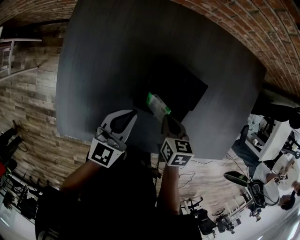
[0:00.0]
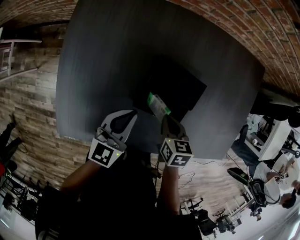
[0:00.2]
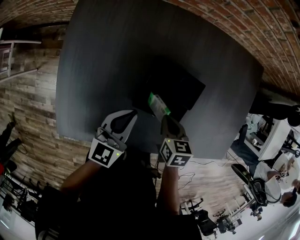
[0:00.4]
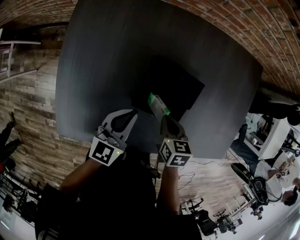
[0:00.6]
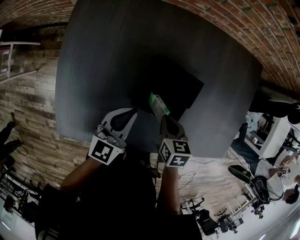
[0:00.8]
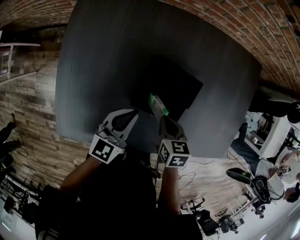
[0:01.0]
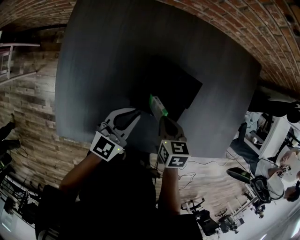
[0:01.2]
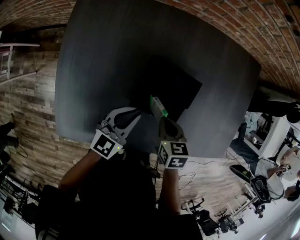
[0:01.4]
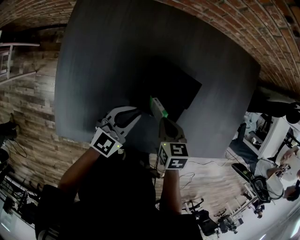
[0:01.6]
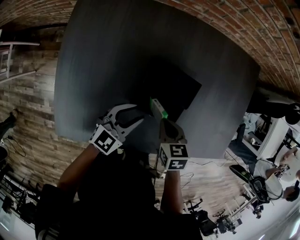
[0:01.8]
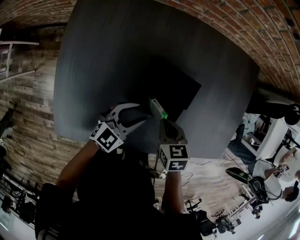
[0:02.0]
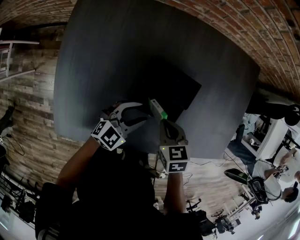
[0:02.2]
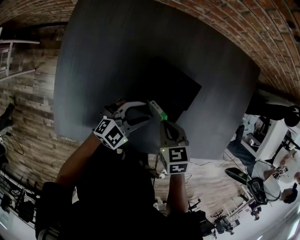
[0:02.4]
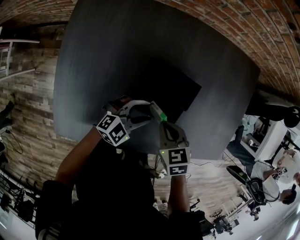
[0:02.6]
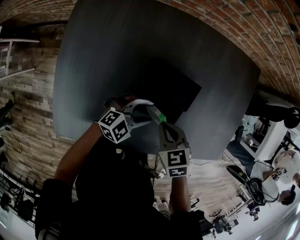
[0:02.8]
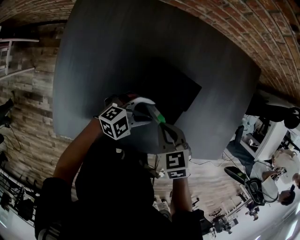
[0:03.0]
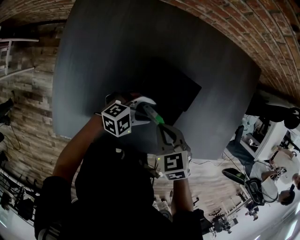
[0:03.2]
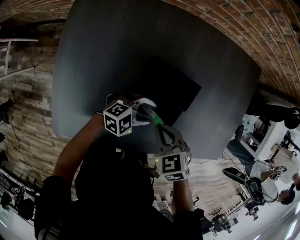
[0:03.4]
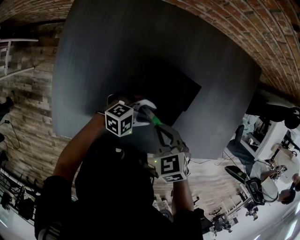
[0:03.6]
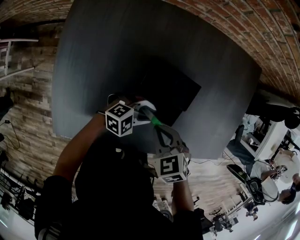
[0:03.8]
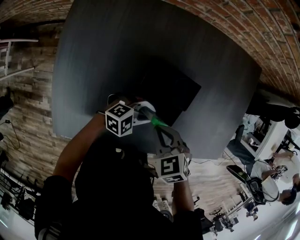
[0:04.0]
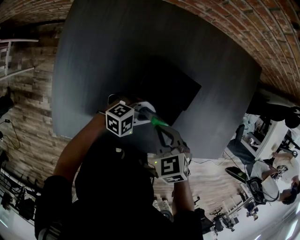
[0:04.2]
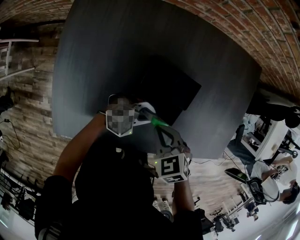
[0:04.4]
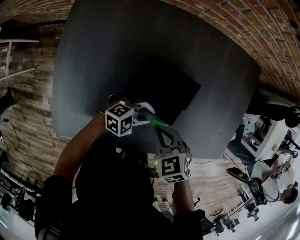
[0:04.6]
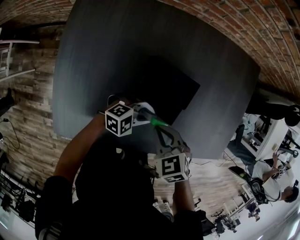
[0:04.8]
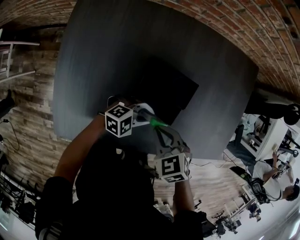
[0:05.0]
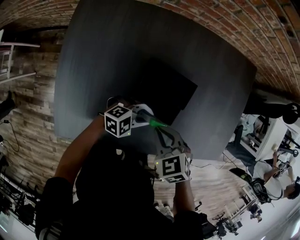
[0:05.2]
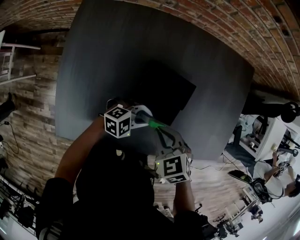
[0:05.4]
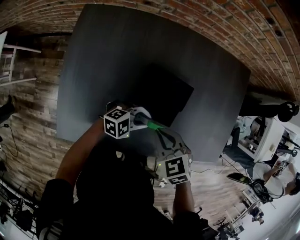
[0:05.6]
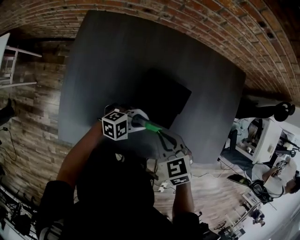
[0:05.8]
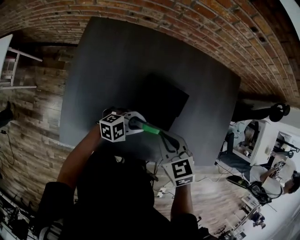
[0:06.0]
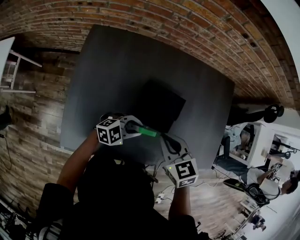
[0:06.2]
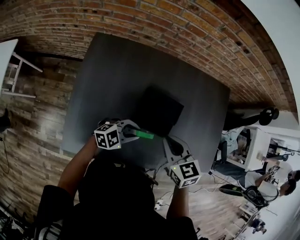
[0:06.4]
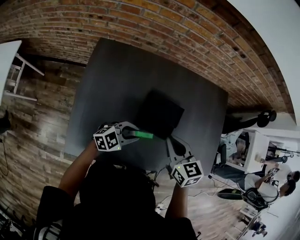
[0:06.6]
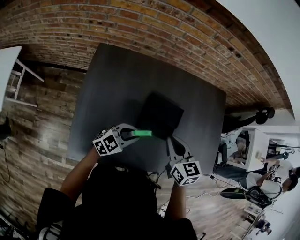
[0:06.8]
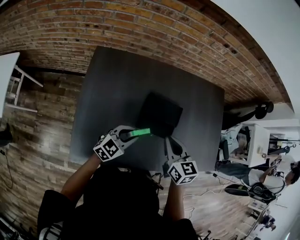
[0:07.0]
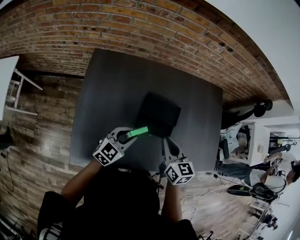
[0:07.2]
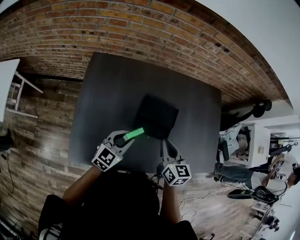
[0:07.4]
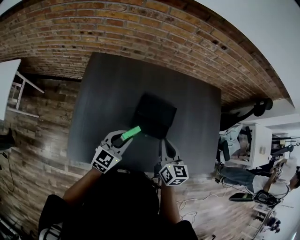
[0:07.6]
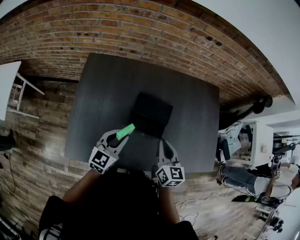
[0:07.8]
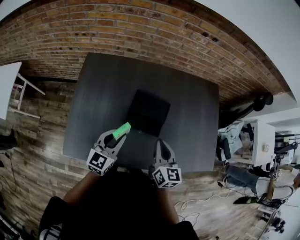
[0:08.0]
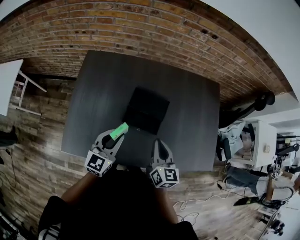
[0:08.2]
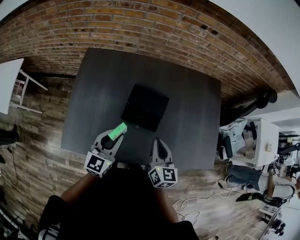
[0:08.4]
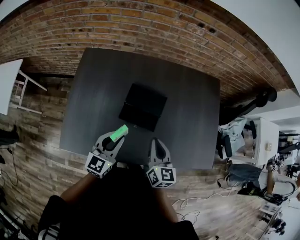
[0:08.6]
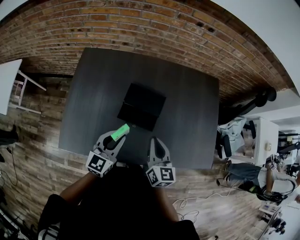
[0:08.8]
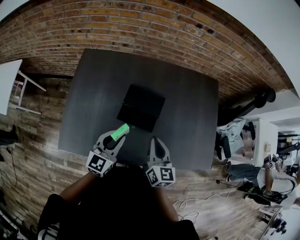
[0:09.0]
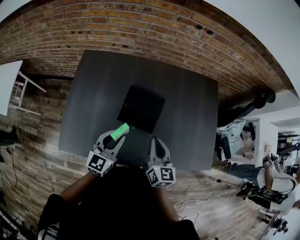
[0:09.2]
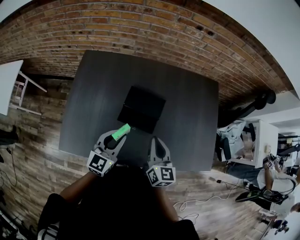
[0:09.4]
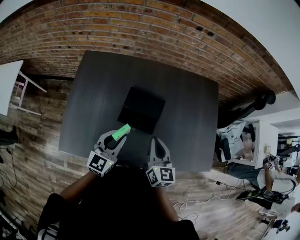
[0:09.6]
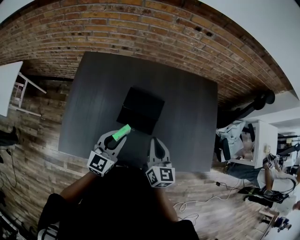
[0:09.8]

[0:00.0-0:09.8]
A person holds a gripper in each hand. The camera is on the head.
0:00.0 to 0:01.4: The grippers move only a little.
0:01.4 to 0:02.8: The right gripper swivels about 20 degrees. The left gripper travels to the right and downward by roughly 10 cm, turns by about 40 degrees, and opens up.
0:02.8 to 0:04.2: The left gripper closes up.
0:04.2 to 0:05.6: The right gripper goes about 5 cm upward.
0:05.6 to 0:07.0: The left gripper ends up some 15 cm from where it was, and swivels approximately 40 degrees; the right gripper goes about 10 cm upward, and turns by approximately 40 degrees.
0:07.0 to 0:08.4: The right gripper moves to the right, approximately 10 cm. Meanwhile the left gripper moves upward and to the right, roughly 10 cm, and swivels about 30 degrees.
0:08.4 to 0:09.8: The grippers make only small movements.

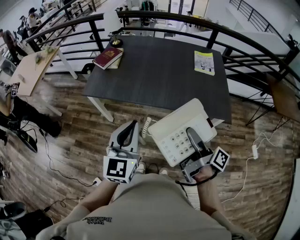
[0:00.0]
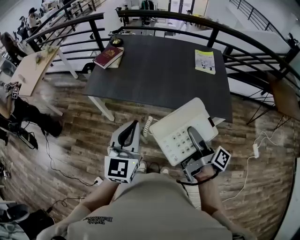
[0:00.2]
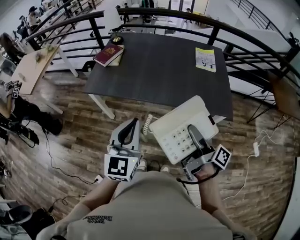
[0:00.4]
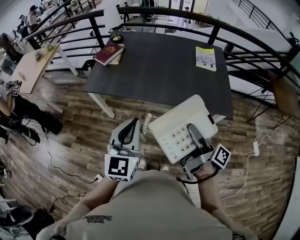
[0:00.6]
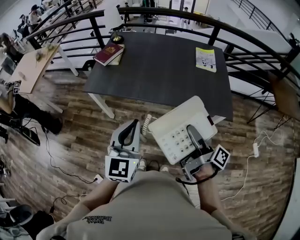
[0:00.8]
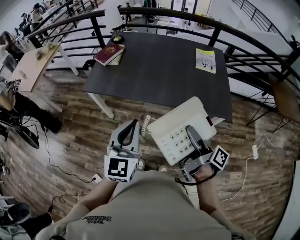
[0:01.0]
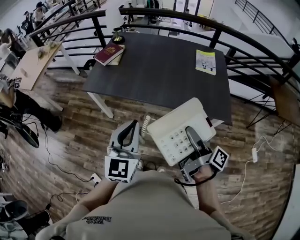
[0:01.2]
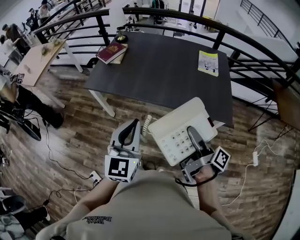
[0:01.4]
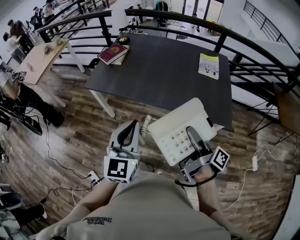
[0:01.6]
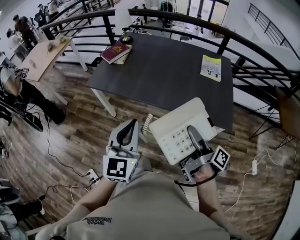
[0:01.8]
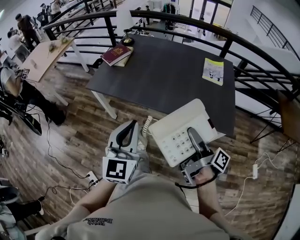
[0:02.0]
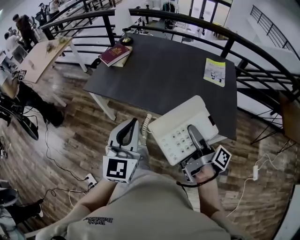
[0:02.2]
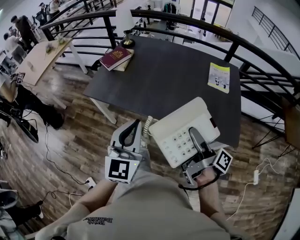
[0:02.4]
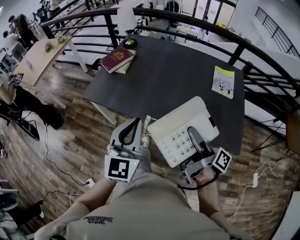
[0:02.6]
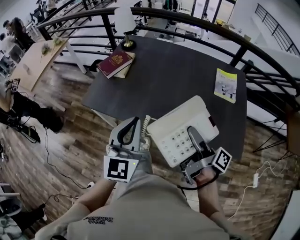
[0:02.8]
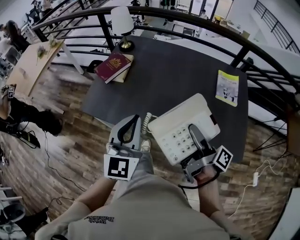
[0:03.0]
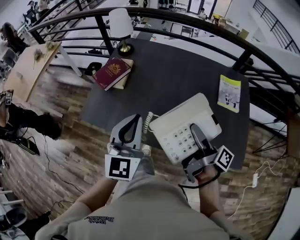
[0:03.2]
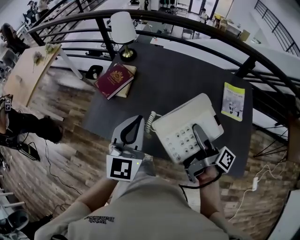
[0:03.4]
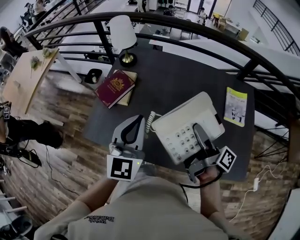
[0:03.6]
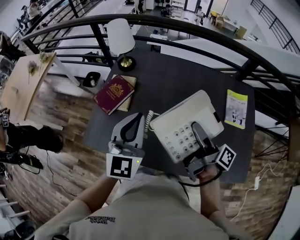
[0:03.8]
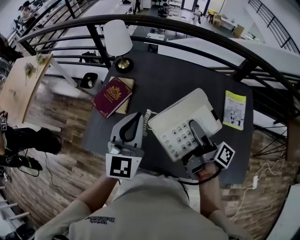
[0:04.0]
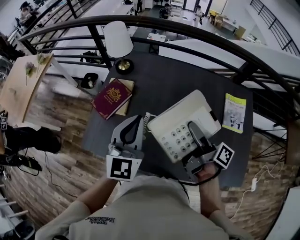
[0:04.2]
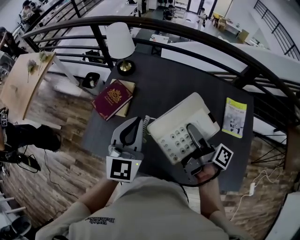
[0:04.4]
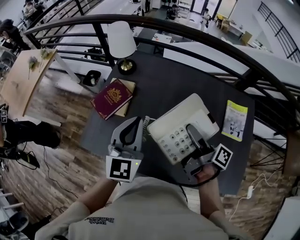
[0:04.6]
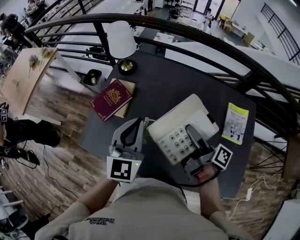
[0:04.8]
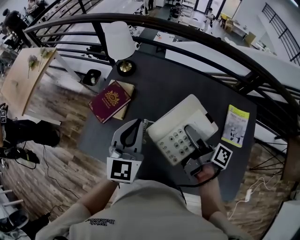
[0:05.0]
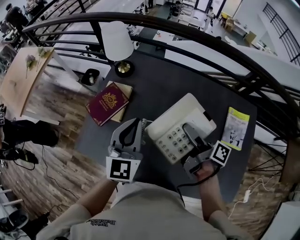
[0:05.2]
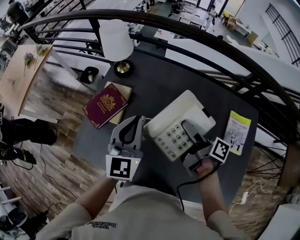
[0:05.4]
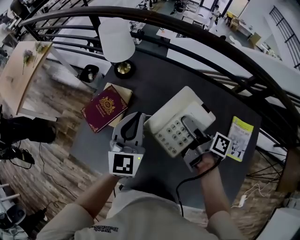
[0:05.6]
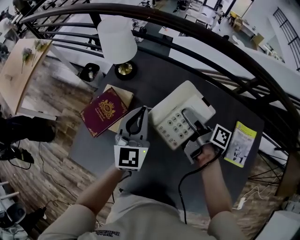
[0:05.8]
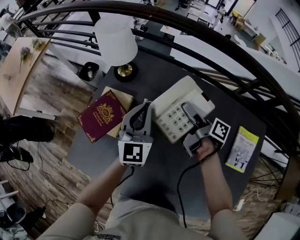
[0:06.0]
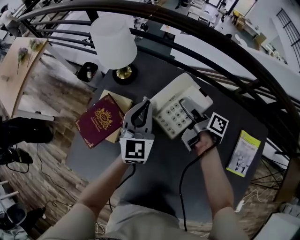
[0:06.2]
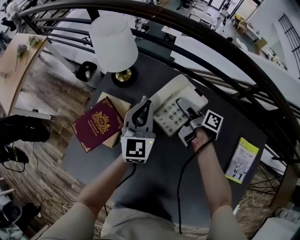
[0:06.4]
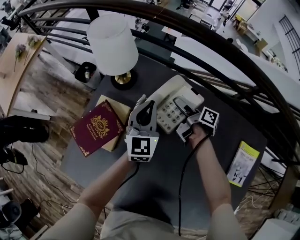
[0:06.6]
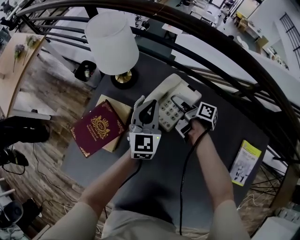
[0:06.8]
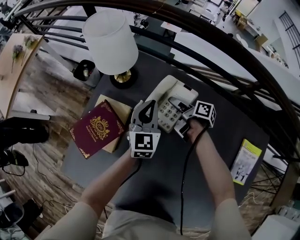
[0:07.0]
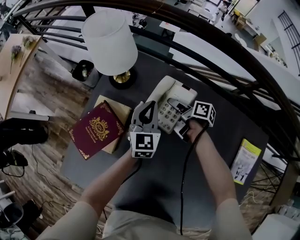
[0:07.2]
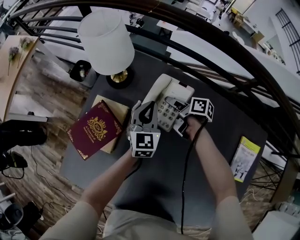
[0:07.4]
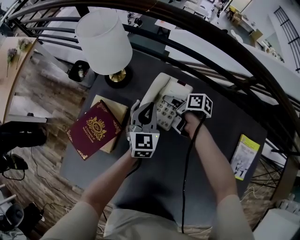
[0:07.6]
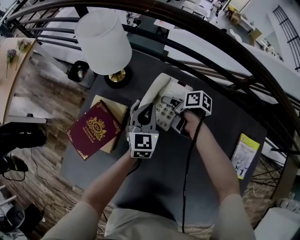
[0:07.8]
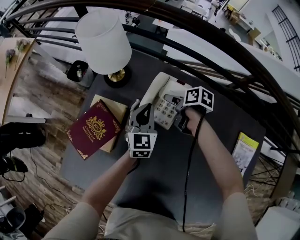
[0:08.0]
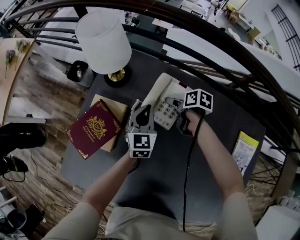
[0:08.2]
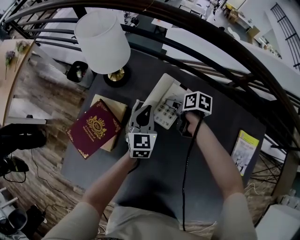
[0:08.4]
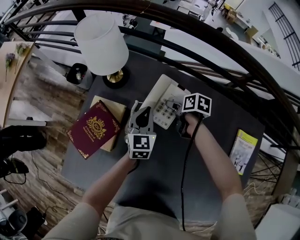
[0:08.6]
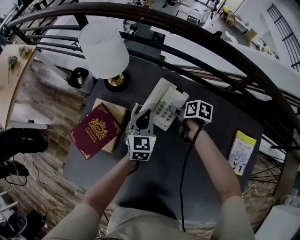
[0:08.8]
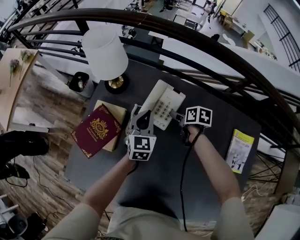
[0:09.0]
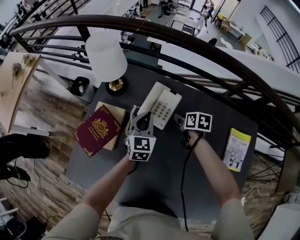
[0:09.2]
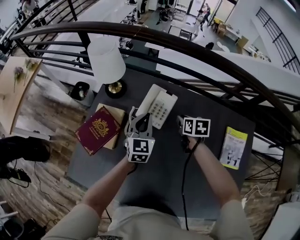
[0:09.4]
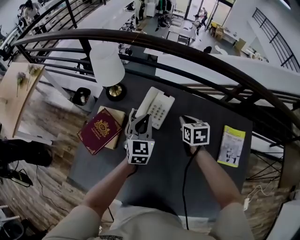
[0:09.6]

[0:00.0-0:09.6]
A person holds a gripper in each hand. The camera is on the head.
0:00.0 to 0:01.6: The left gripper moves about 5 cm.
0:01.6 to 0:03.2: The left gripper changes place by roughly 35 cm.
0:03.2 to 0:04.8: The left gripper moves some 20 cm.
0:04.8 to 0:06.4: The left gripper moves roughly 35 cm.
0:06.4 to 0:08.0: The left gripper is displaced downward by some 10 cm.
0:08.0 to 0:09.6: The left gripper goes some 10 cm upward.

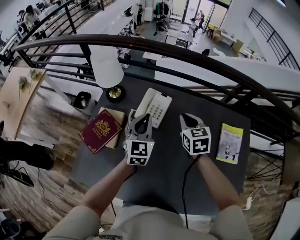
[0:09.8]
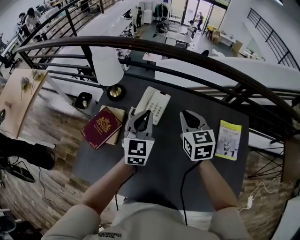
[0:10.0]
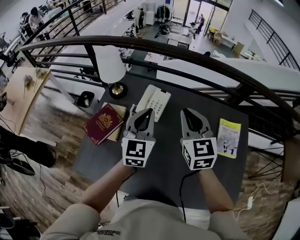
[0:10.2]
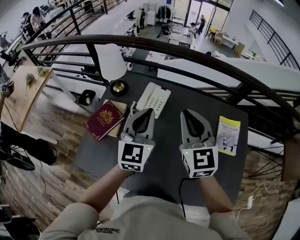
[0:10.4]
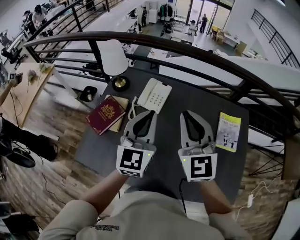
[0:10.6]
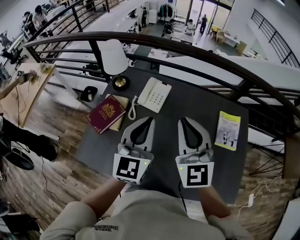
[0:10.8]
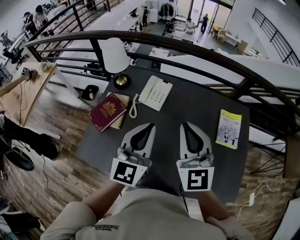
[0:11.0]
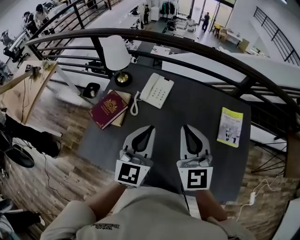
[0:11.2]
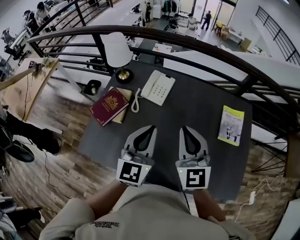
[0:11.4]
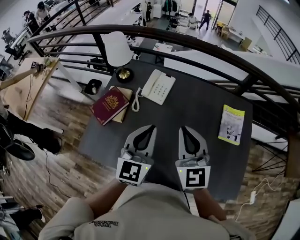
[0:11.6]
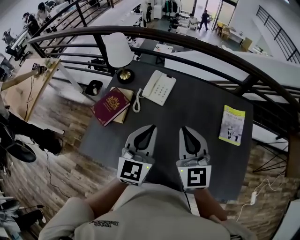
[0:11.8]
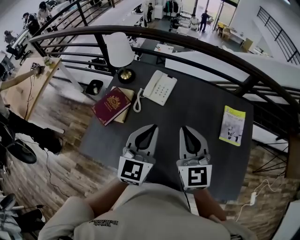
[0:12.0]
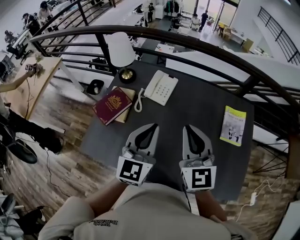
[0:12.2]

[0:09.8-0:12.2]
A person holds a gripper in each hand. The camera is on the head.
0:09.8 to 0:11.0: The left gripper moves about 25 cm.

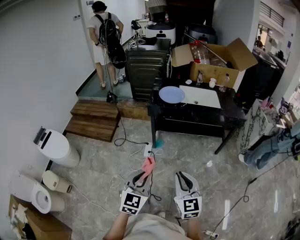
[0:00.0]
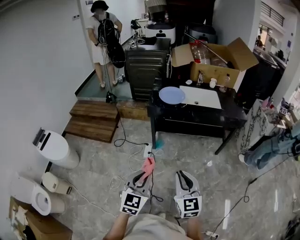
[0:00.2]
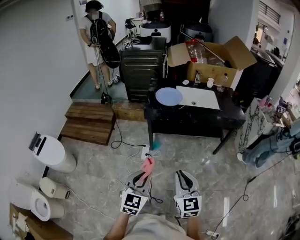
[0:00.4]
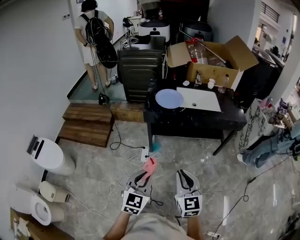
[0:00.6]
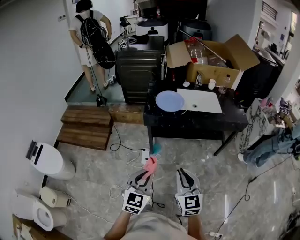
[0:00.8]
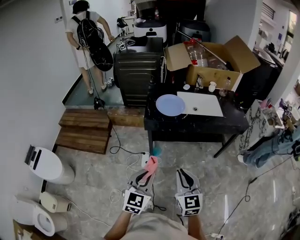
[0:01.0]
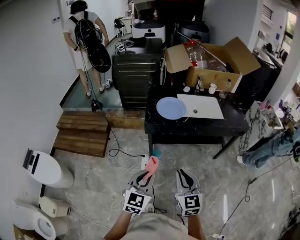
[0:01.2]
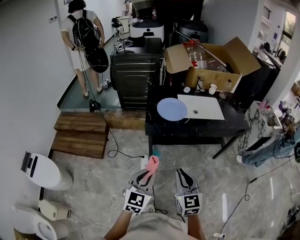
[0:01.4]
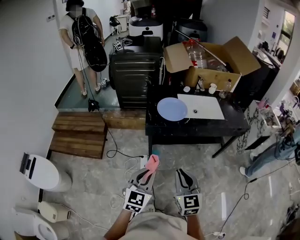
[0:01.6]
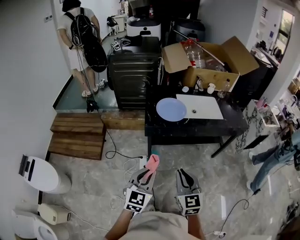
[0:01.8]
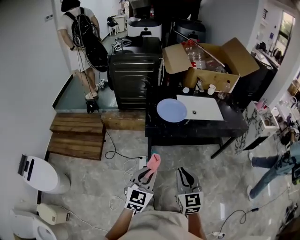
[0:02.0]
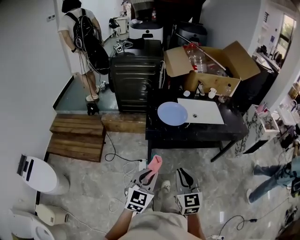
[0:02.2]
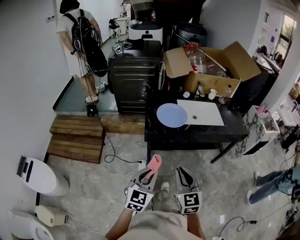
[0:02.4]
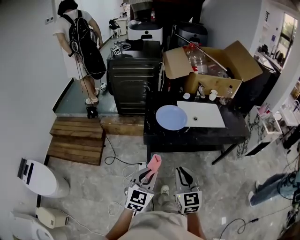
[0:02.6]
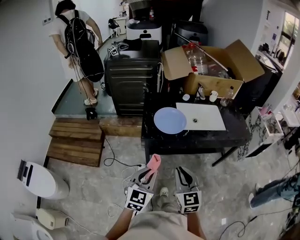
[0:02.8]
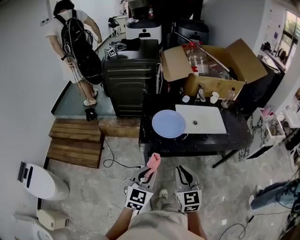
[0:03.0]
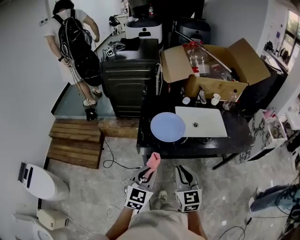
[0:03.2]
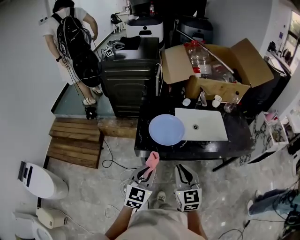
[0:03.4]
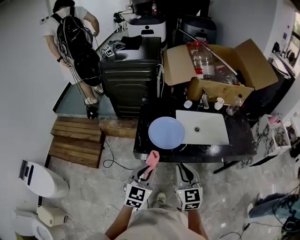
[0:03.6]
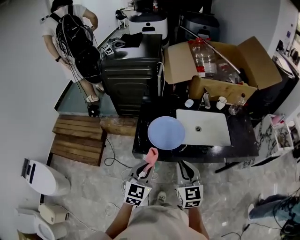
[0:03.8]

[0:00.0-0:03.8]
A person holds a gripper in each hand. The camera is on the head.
0:00.0 to 0:01.2: Both grippers travel together forward, approximately 25 cm.
0:01.2 to 0:02.6: Both grippers travel together forward, some 10 cm.
0:02.6 to 0:03.8: Both grippers move forward, approximately 25 cm.
